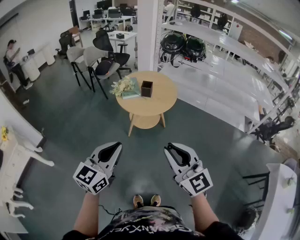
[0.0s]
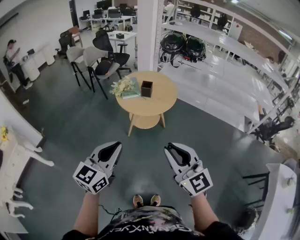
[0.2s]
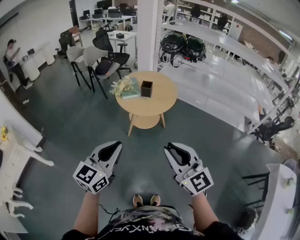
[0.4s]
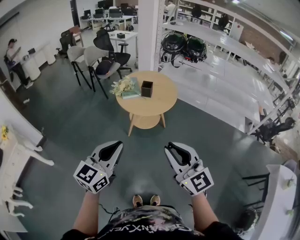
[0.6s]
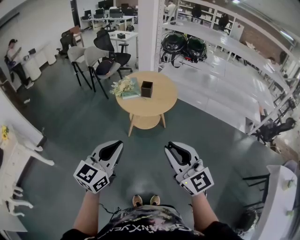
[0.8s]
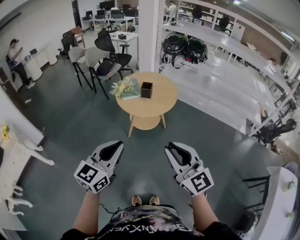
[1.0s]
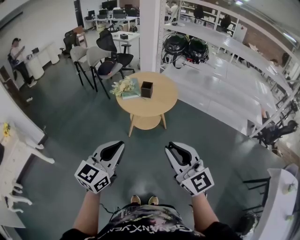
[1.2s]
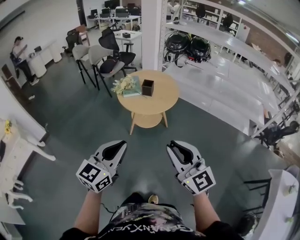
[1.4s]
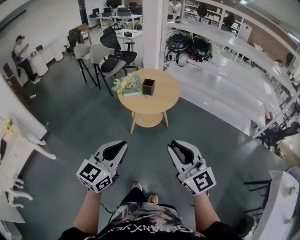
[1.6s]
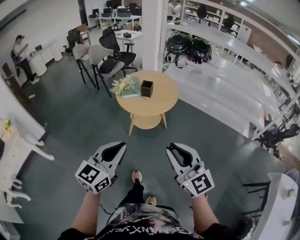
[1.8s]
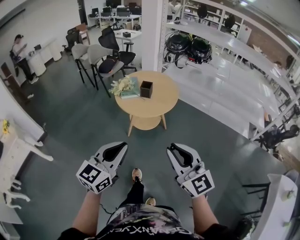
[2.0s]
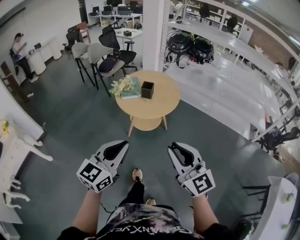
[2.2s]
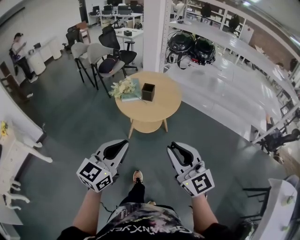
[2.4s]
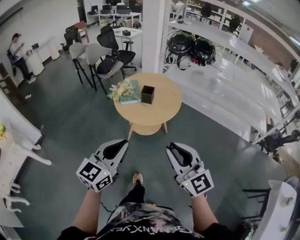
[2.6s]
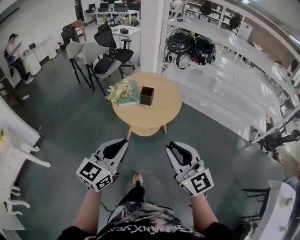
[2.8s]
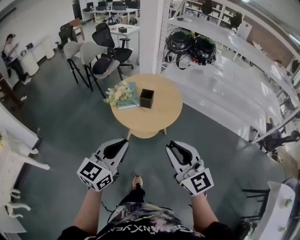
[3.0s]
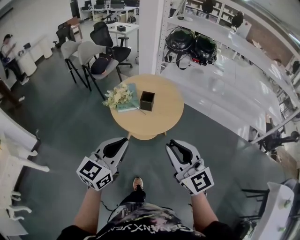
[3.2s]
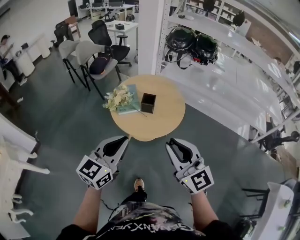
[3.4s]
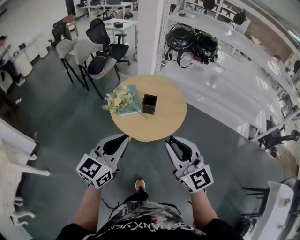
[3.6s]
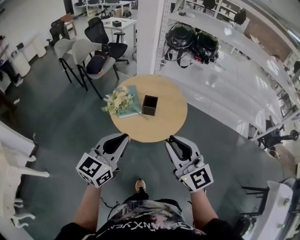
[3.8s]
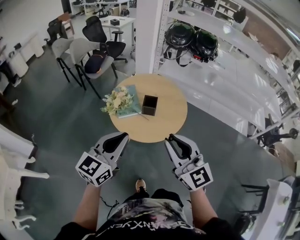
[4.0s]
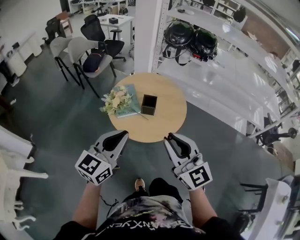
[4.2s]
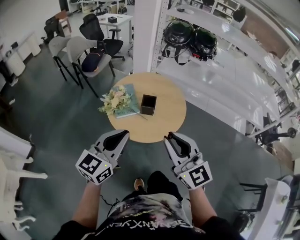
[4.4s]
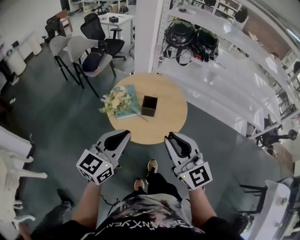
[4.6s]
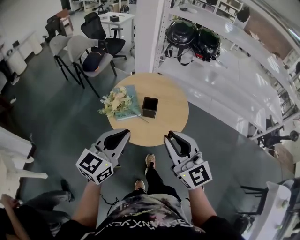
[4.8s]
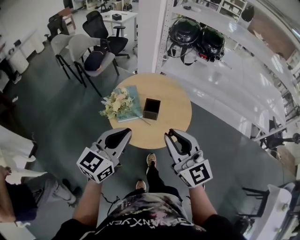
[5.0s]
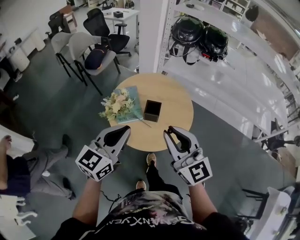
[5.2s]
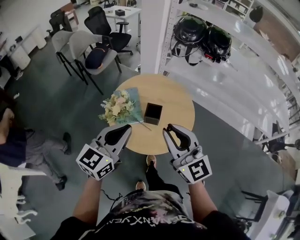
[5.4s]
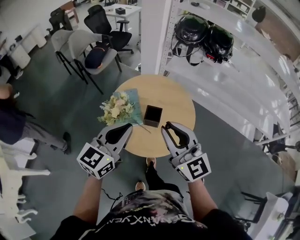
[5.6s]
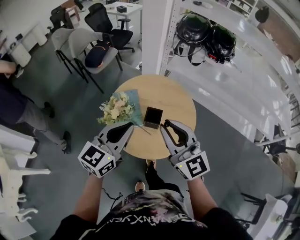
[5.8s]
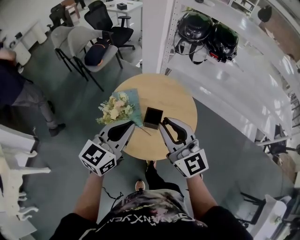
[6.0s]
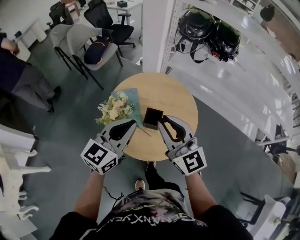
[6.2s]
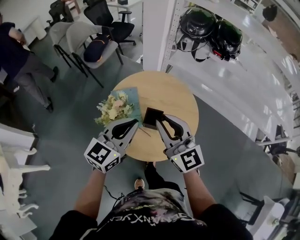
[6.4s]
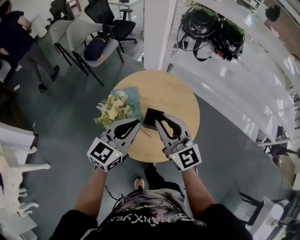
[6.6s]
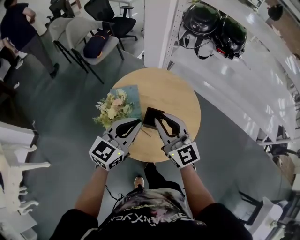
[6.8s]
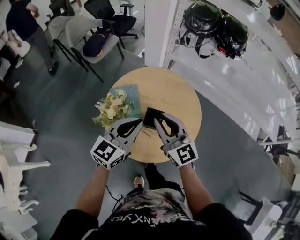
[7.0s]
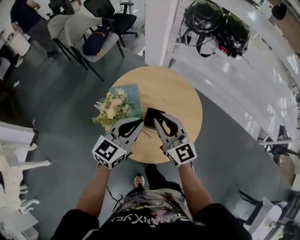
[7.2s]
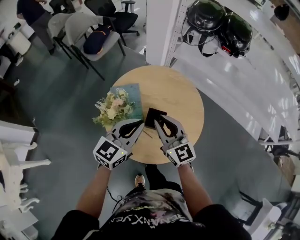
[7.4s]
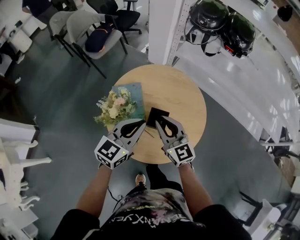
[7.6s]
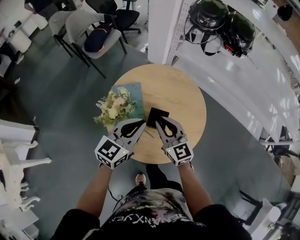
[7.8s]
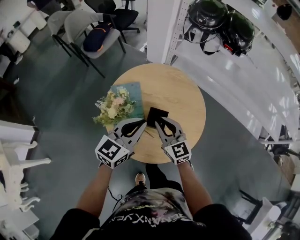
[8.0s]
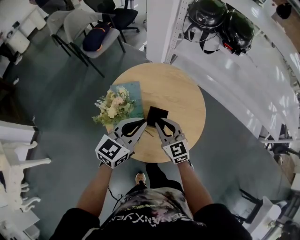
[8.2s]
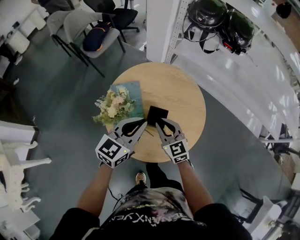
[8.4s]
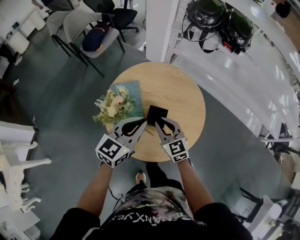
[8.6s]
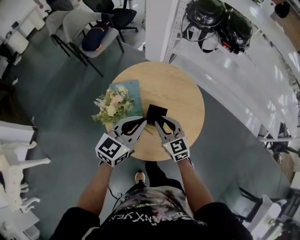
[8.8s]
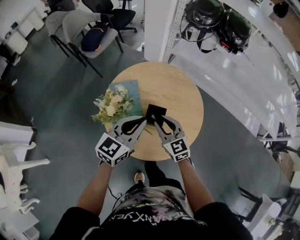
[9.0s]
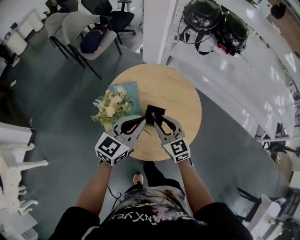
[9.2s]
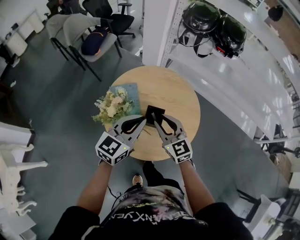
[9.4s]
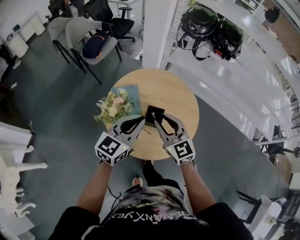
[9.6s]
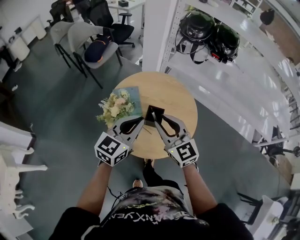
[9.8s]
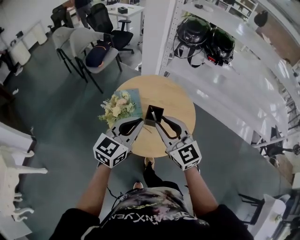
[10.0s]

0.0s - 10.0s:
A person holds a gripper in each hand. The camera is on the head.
0.0s - 1.4s: The grippers both shift to the right by some 5 cm.
1.4s - 2.8s: Both grippers move forward, roughly 15 cm.
2.8s - 4.2s: The two grippers go some 20 cm forward.
4.2s - 5.8s: The two grippers go roughly 20 cm forward.
5.8s - 7.2s: Both grippers move downward and forward, some 15 cm.
7.2s - 8.6s: The right gripper is displaced downward by about 10 cm, and changes its angle by some 20 degrees.
8.6s - 10.0s: The left gripper shifts roughly 15 cm upward and backward, while the right gripper is displaced upward and backward by roughly 20 cm.

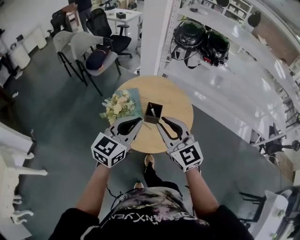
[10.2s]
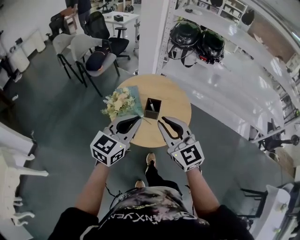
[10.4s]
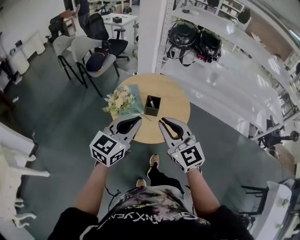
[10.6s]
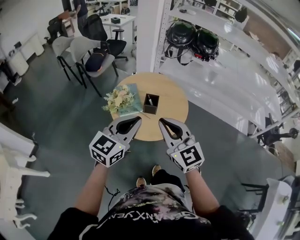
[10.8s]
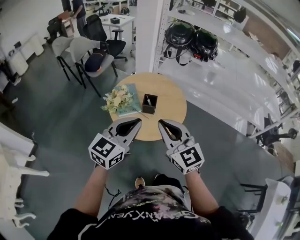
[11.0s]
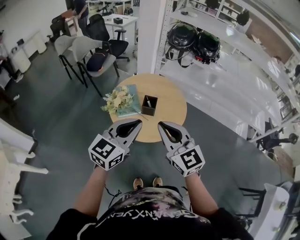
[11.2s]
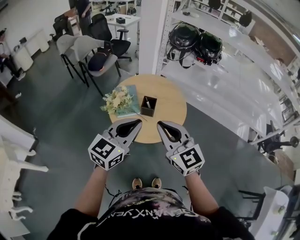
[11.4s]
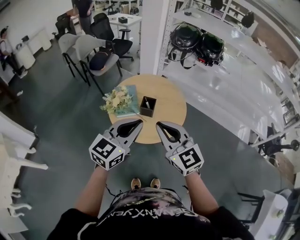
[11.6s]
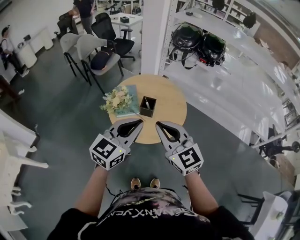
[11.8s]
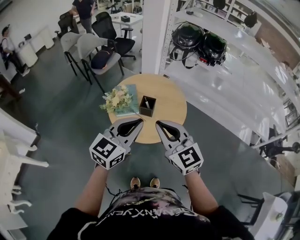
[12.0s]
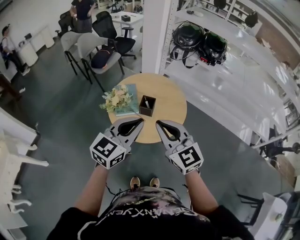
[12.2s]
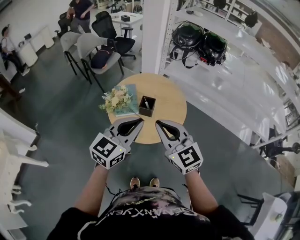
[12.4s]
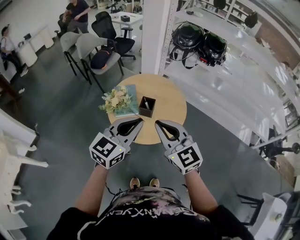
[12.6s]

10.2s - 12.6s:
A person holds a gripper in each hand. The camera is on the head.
10.2s - 11.4s: Both grippers move backward and upward, roughly 10 cm.
11.4s - 12.6s: The grippers stay close to where they were, moving slightly.

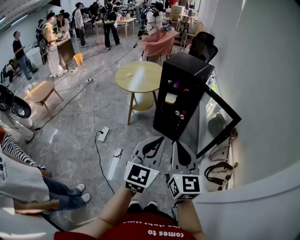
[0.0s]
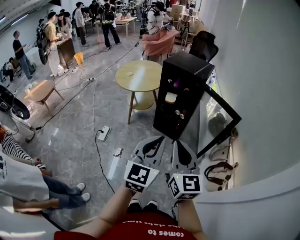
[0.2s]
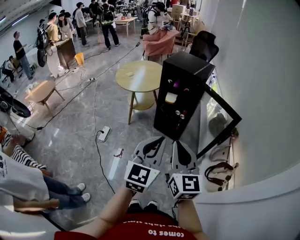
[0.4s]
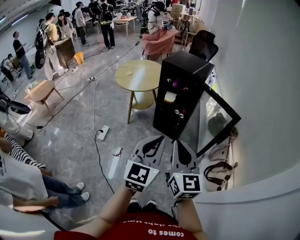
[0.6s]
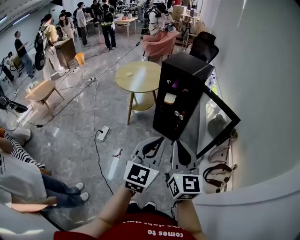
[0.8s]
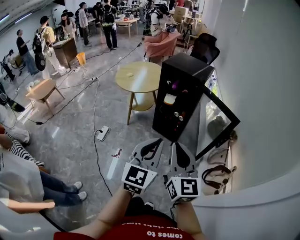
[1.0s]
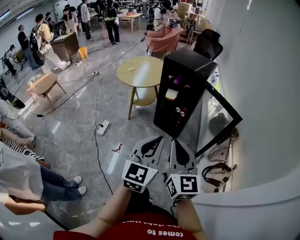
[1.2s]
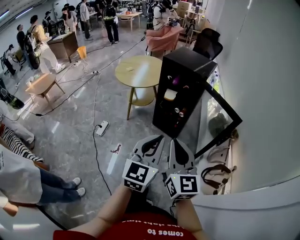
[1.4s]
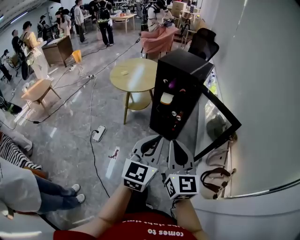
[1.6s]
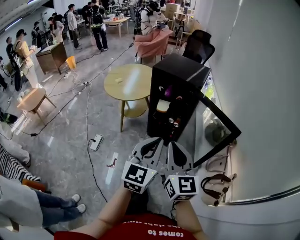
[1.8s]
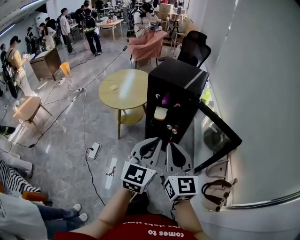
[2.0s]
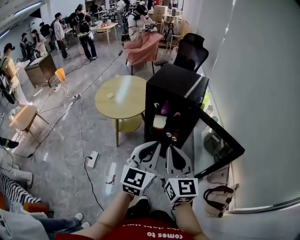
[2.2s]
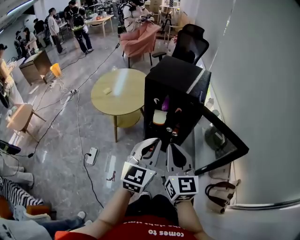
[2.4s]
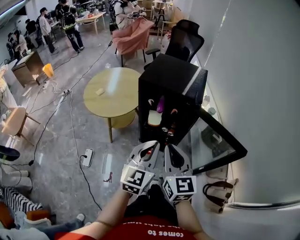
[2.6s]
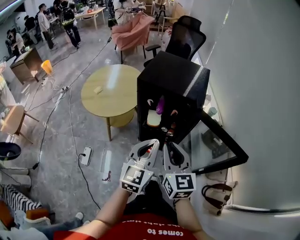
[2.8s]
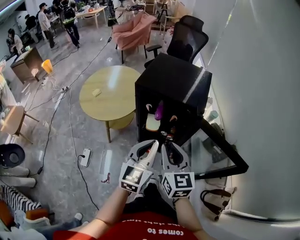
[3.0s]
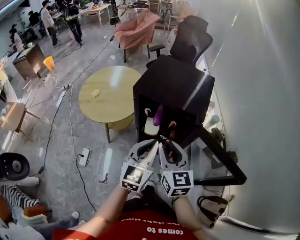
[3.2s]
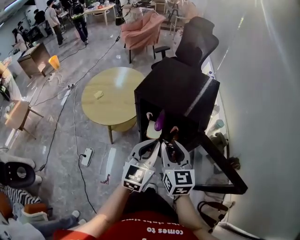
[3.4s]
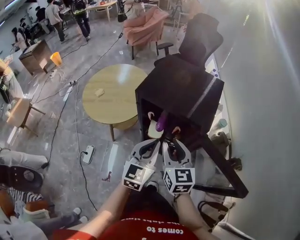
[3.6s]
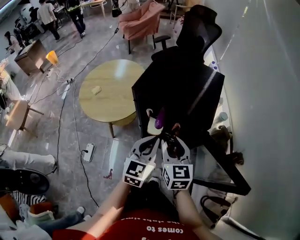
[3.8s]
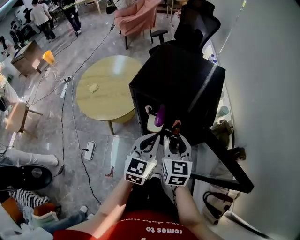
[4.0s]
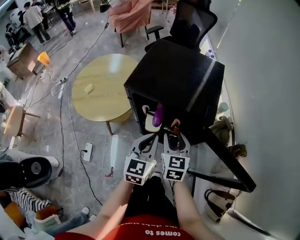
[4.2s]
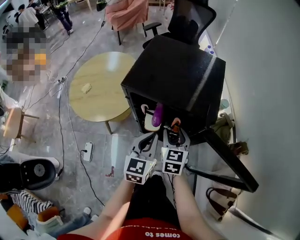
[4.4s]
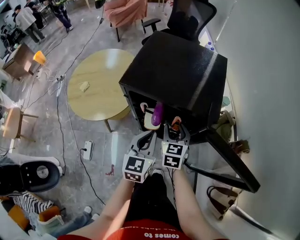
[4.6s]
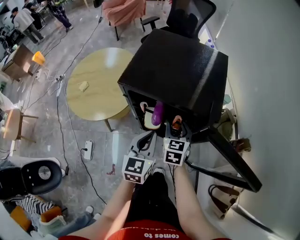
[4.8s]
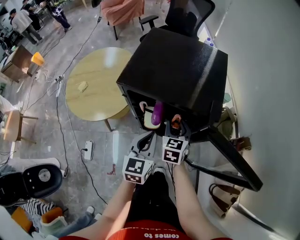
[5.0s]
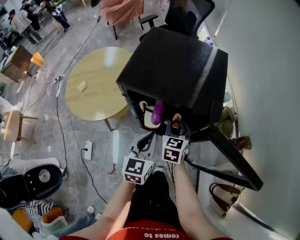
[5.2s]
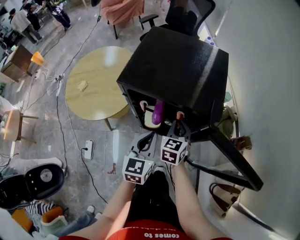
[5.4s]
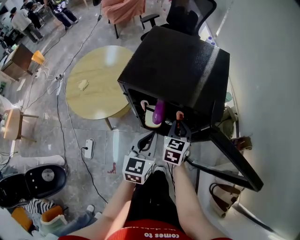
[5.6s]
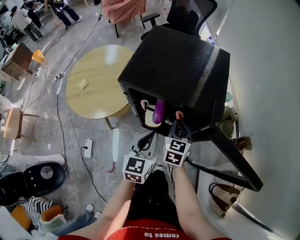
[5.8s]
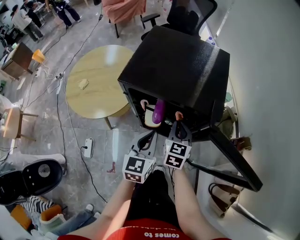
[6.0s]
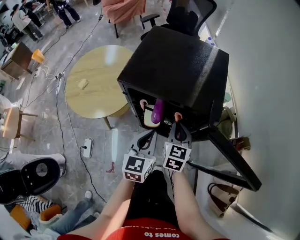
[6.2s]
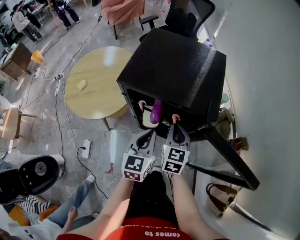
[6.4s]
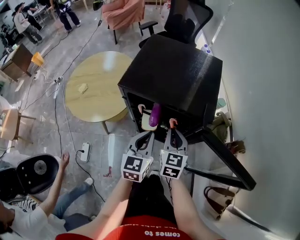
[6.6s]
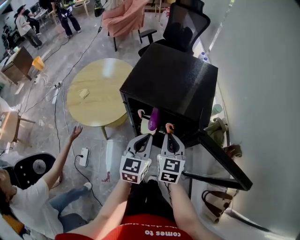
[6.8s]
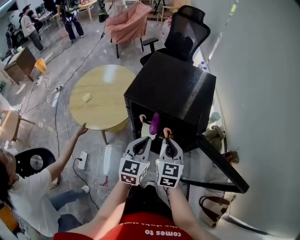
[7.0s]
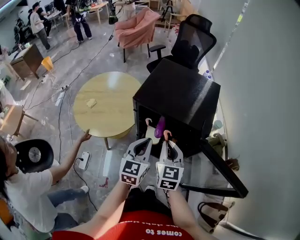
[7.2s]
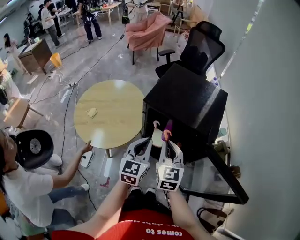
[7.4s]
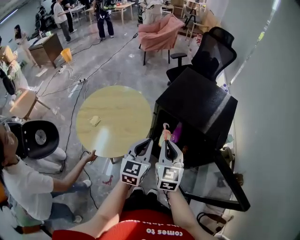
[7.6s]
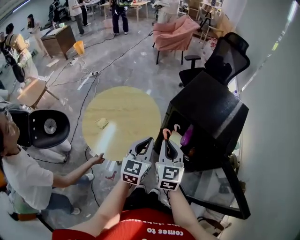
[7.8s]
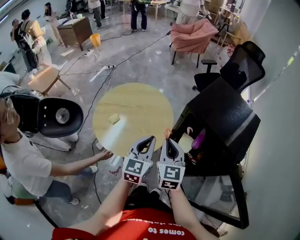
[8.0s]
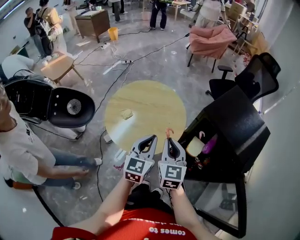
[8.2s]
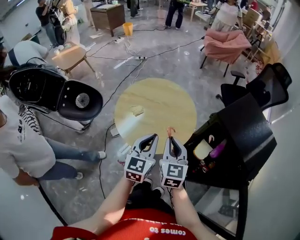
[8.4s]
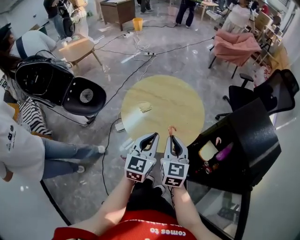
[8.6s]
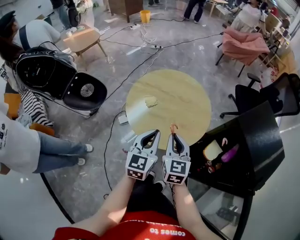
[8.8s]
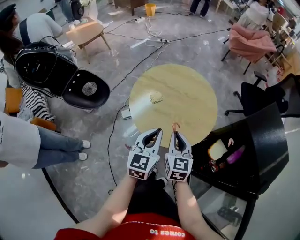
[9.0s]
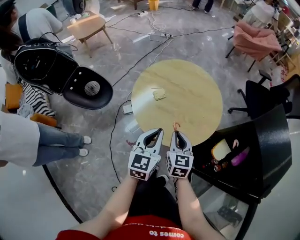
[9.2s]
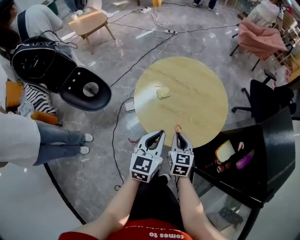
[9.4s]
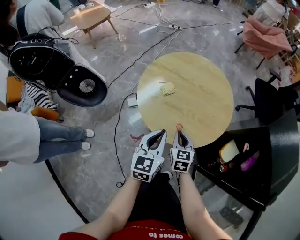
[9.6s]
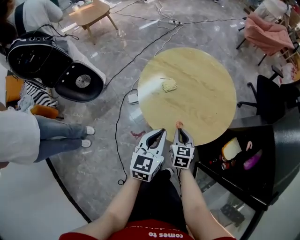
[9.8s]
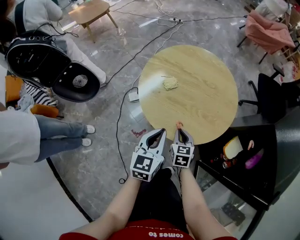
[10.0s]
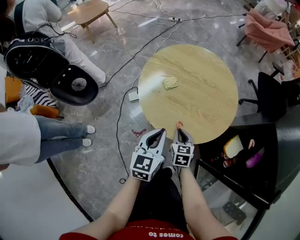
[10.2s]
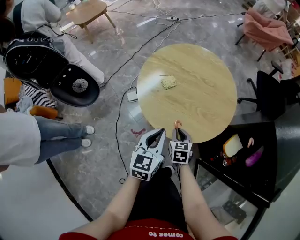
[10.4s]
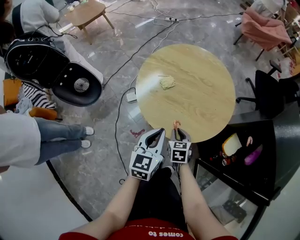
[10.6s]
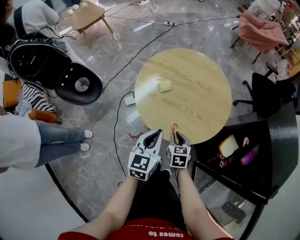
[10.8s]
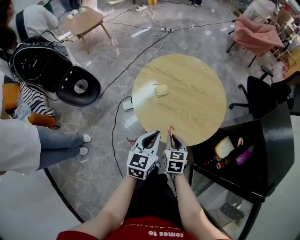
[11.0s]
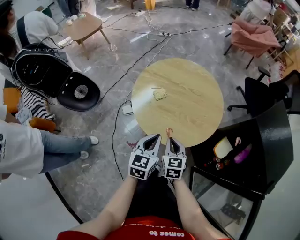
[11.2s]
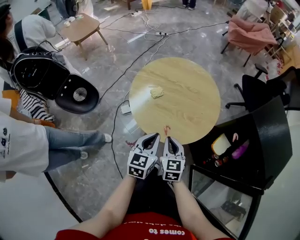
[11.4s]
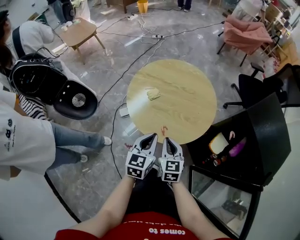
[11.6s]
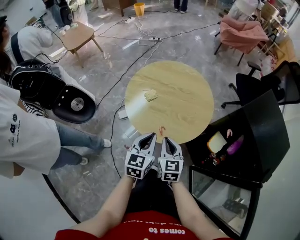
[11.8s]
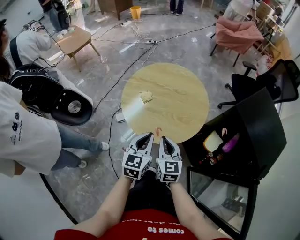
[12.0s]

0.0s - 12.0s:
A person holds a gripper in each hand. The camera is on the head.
0.0s - 1.6s: Both grippers travel together forward, roughly 10 cm.
1.6s - 3.0s: The grippers both shift forward by roughly 35 cm.
3.0s - 4.4s: Both grippers move forward and downward, about 20 cm. The right gripper rotates approximately 20 degrees, and opens.
4.4s - 6.0s: The right gripper closes.
6.0s - 7.6s: The right gripper travels upward, to the left and backward by some 20 cm, and rotates about 30 degrees. Meanwhile the left gripper shifts some 15 cm to the left and upward.
7.6s - 9.0s: The left gripper moves approximately 25 cm, and turns by some 30 degrees, while the right gripper ends up about 30 cm from where it was, and changes its angle by some 40 degrees.
9.0s - 10.4s: The right gripper travels downward by approximately 20 cm, and turns by some 30 degrees. Meanwhile the left gripper travels downward by some 10 cm.
10.4s - 12.0s: The right gripper moves upward, roughly 20 cm, and rotates approximately 30 degrees. The left gripper shifts roughly 10 cm upward.
